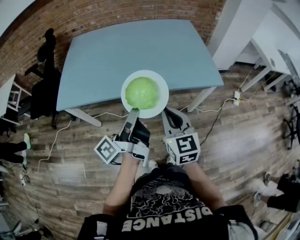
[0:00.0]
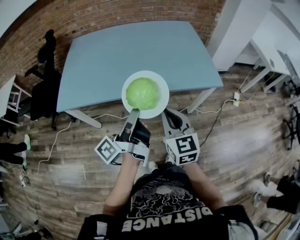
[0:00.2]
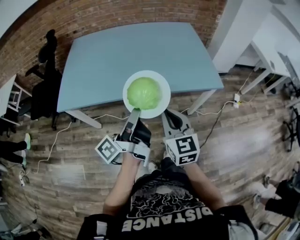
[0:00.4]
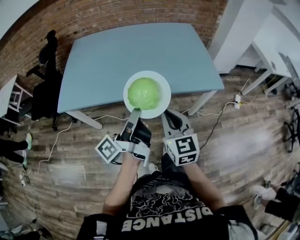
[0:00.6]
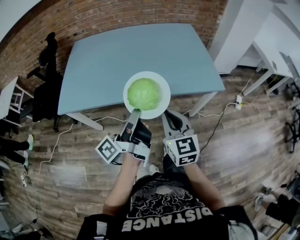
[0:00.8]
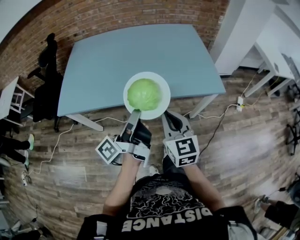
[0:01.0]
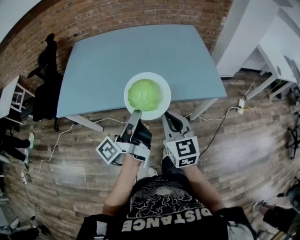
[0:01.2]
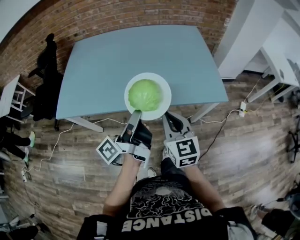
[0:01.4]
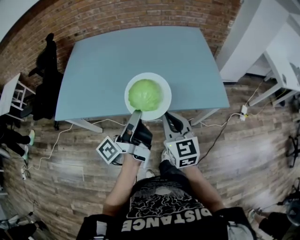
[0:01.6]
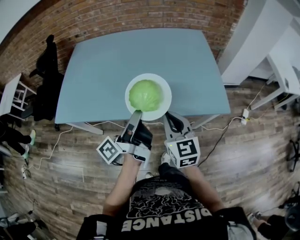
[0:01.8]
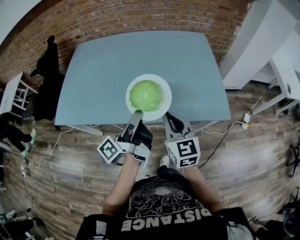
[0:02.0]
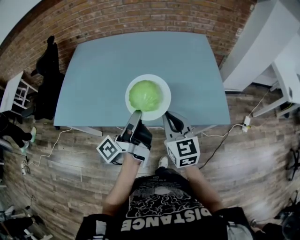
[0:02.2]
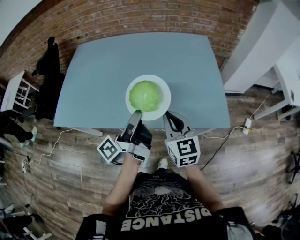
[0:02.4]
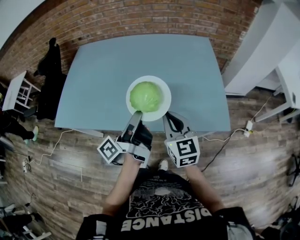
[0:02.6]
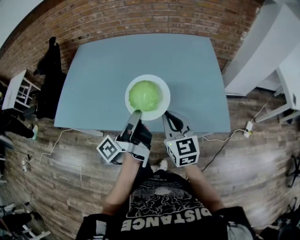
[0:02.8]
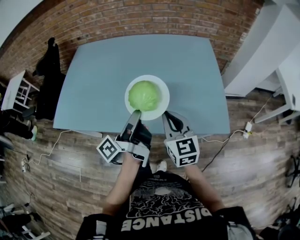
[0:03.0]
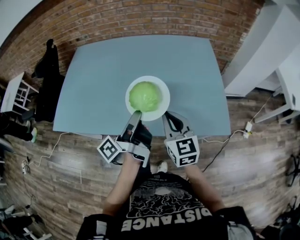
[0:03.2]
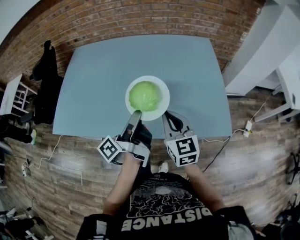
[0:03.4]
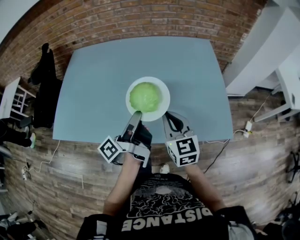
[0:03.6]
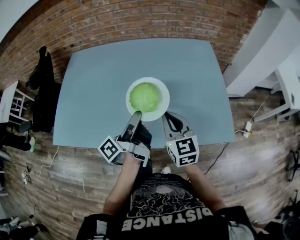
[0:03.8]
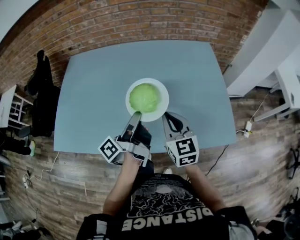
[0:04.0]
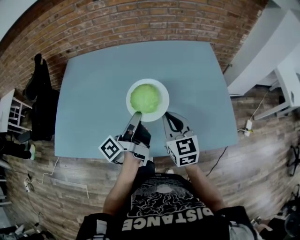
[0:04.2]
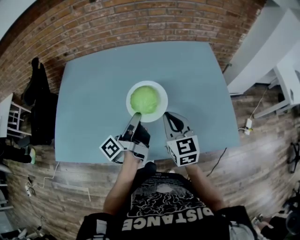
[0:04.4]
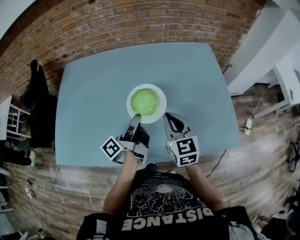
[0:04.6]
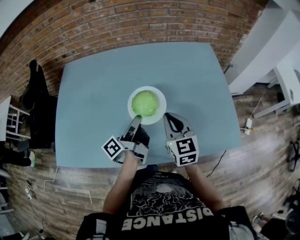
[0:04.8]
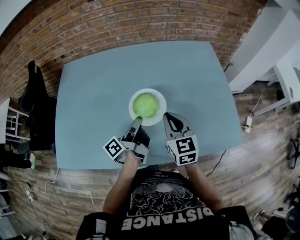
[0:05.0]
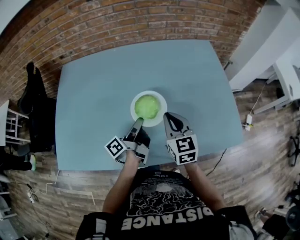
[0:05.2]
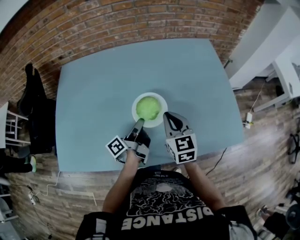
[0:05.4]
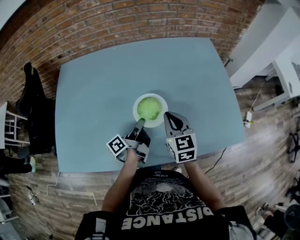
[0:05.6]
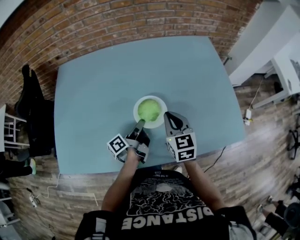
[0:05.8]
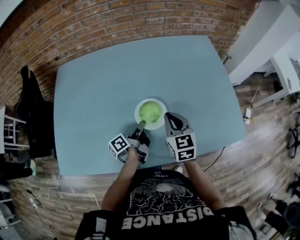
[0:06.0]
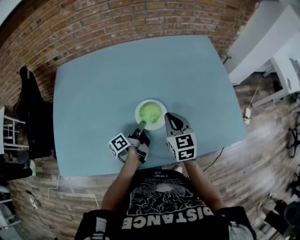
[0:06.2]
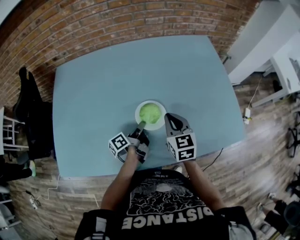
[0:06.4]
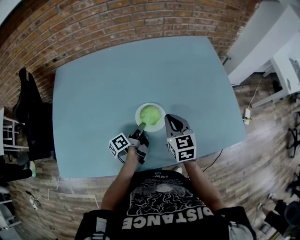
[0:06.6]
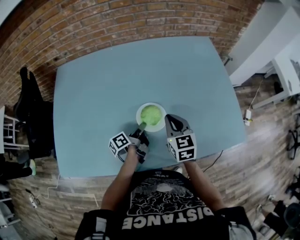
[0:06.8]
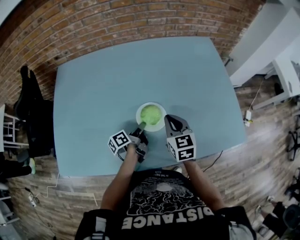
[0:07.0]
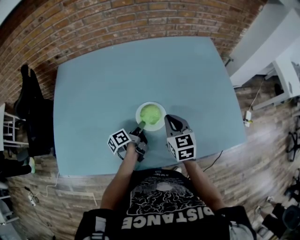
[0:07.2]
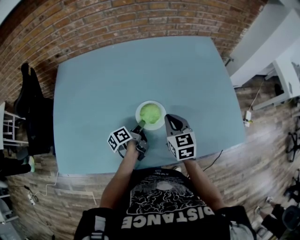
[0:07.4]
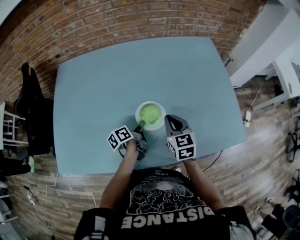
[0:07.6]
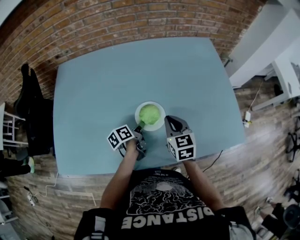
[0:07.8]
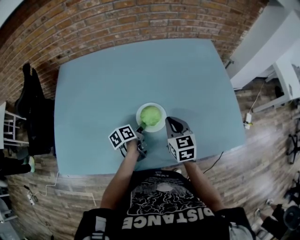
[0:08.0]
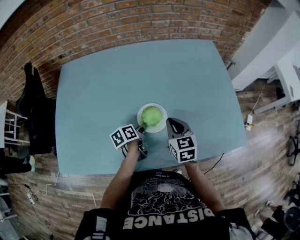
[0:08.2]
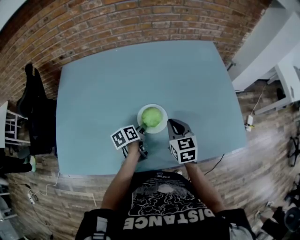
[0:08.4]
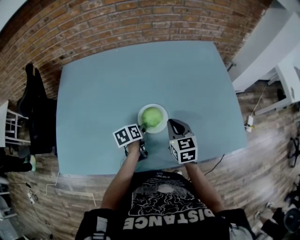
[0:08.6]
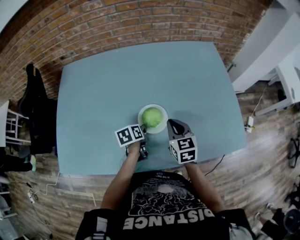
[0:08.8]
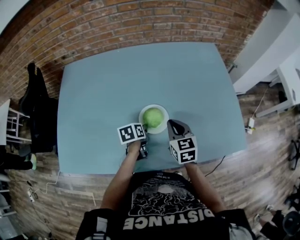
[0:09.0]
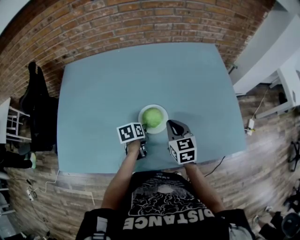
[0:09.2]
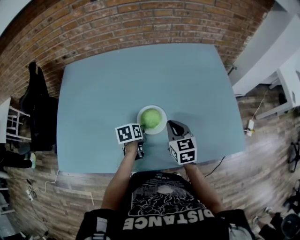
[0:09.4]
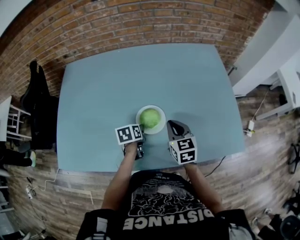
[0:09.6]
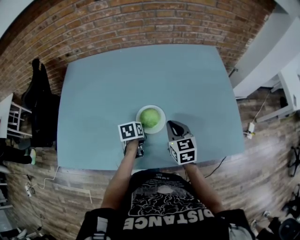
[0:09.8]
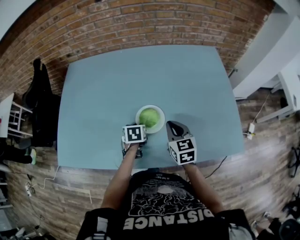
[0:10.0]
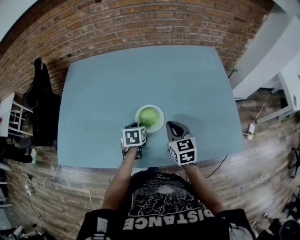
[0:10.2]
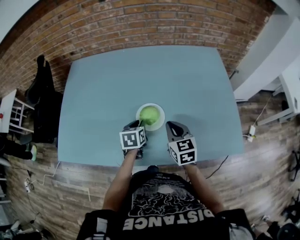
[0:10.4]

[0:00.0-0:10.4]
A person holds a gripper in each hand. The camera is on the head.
0:00.0 to 0:01.4: The right gripper ends up some 10 cm from where it was.
0:01.4 to 0:03.0: The right gripper shifts by roughly 15 cm.
0:03.0 to 0:04.4: The right gripper shifts by roughly 15 cm.
0:04.4 to 0:06.0: The right gripper moves downward, approximately 5 cm.

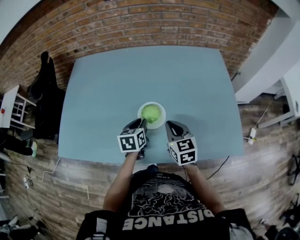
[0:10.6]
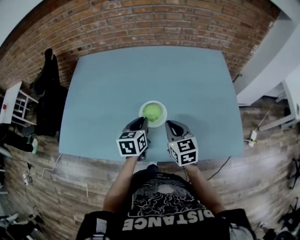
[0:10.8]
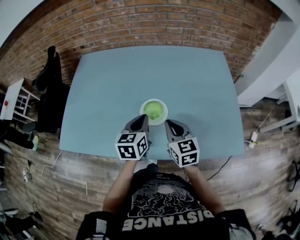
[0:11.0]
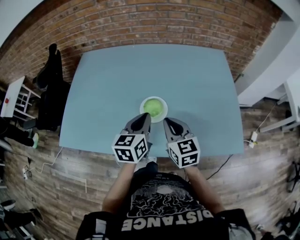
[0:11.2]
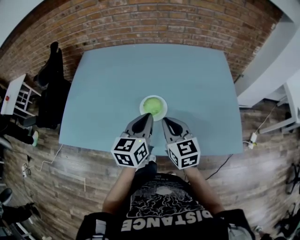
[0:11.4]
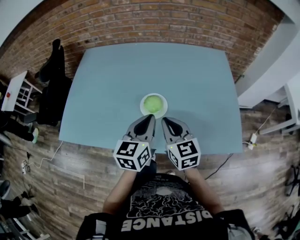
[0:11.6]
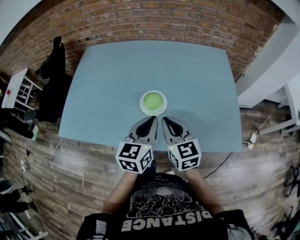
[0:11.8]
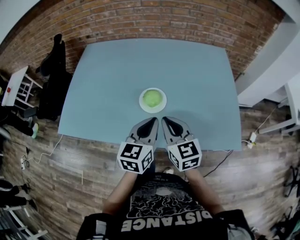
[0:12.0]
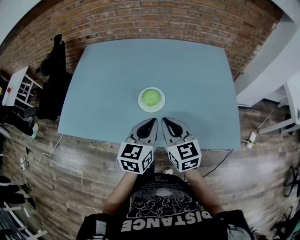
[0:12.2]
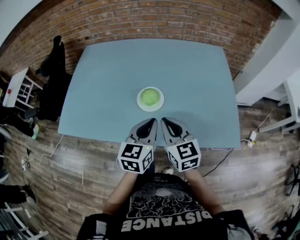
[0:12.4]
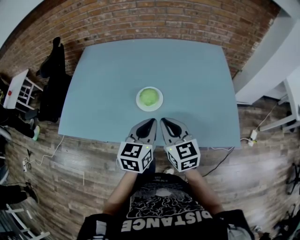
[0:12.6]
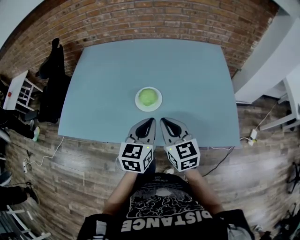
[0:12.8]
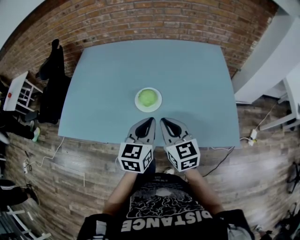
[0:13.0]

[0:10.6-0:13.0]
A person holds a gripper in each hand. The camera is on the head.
0:10.6 to 0:11.8: The right gripper shifts about 10 cm upward.

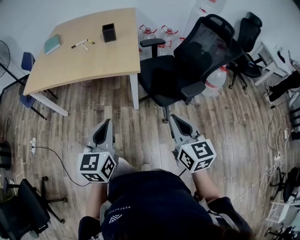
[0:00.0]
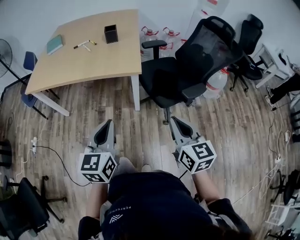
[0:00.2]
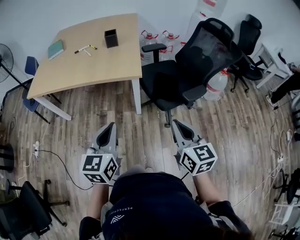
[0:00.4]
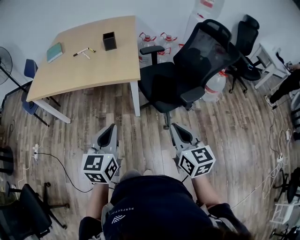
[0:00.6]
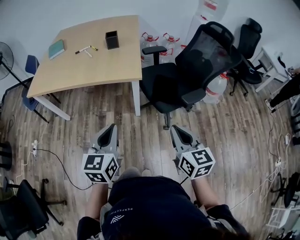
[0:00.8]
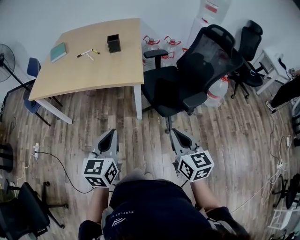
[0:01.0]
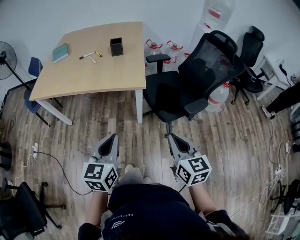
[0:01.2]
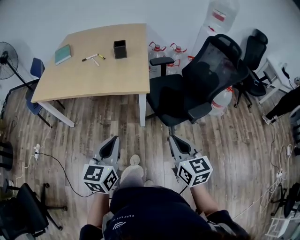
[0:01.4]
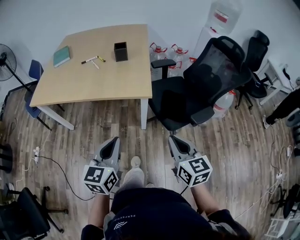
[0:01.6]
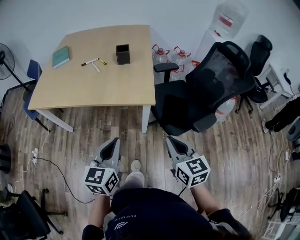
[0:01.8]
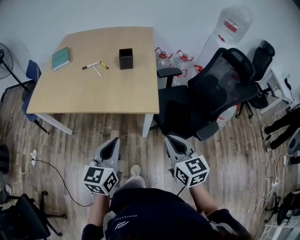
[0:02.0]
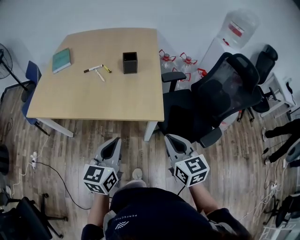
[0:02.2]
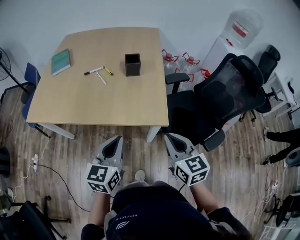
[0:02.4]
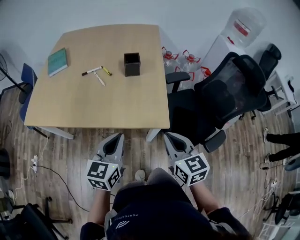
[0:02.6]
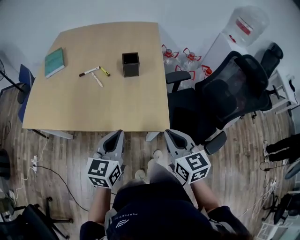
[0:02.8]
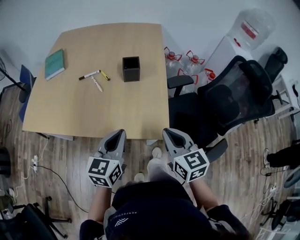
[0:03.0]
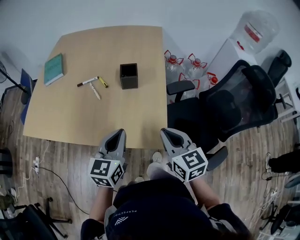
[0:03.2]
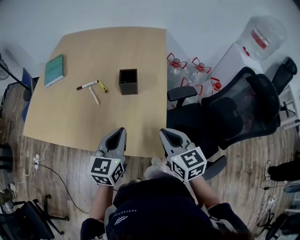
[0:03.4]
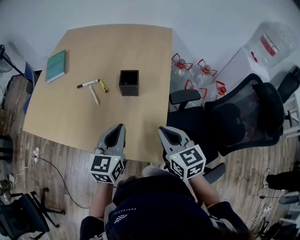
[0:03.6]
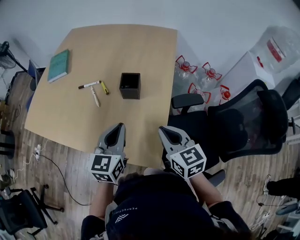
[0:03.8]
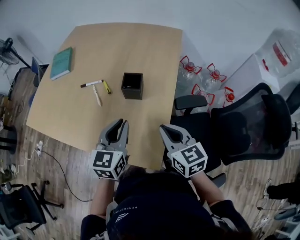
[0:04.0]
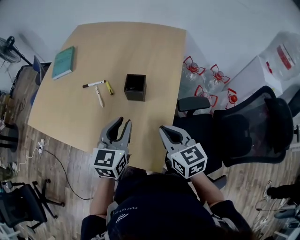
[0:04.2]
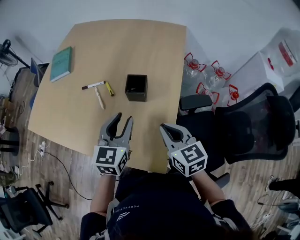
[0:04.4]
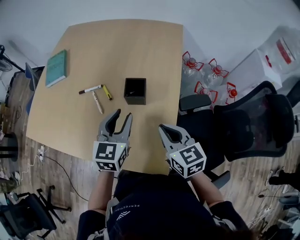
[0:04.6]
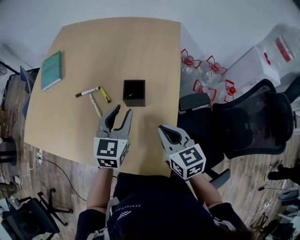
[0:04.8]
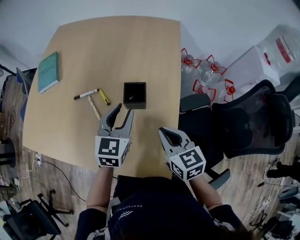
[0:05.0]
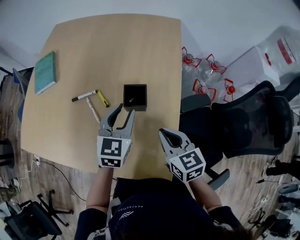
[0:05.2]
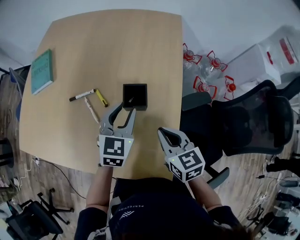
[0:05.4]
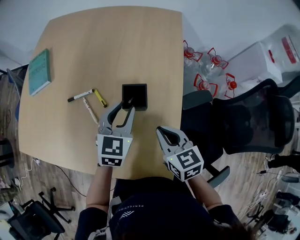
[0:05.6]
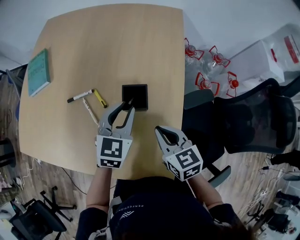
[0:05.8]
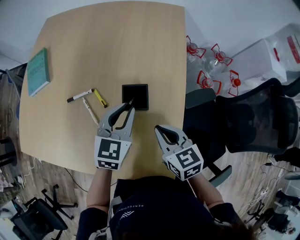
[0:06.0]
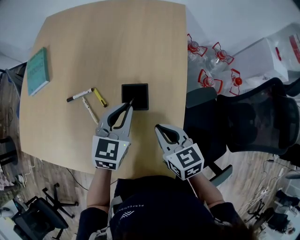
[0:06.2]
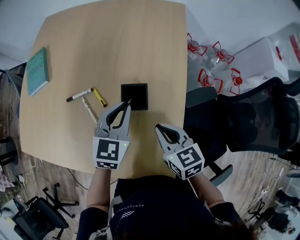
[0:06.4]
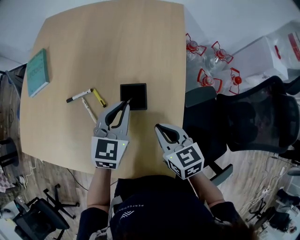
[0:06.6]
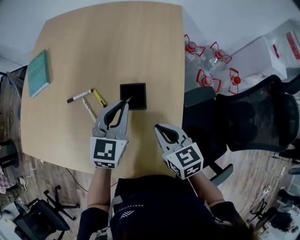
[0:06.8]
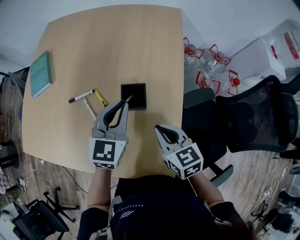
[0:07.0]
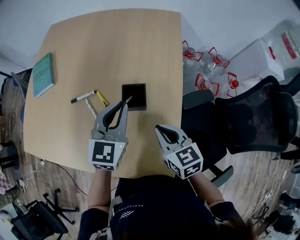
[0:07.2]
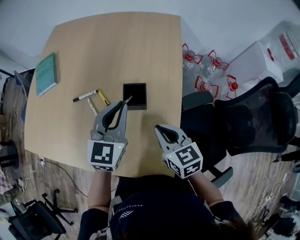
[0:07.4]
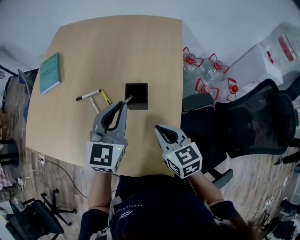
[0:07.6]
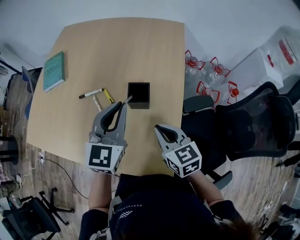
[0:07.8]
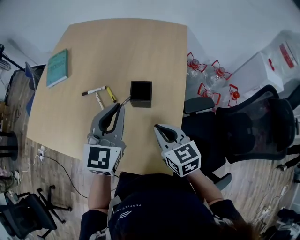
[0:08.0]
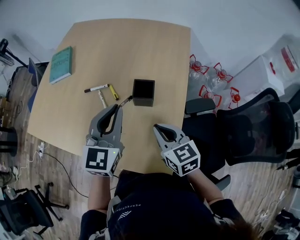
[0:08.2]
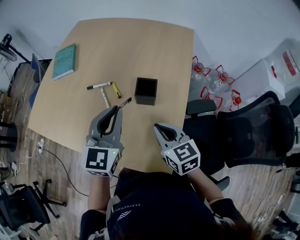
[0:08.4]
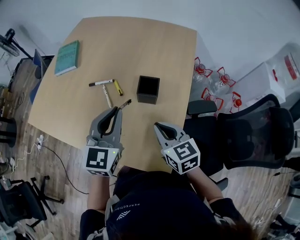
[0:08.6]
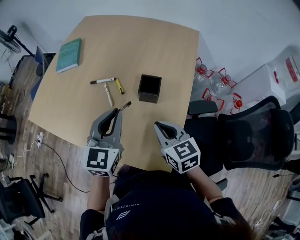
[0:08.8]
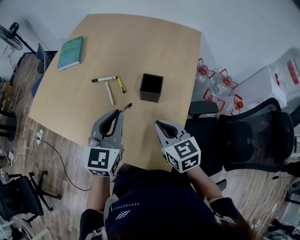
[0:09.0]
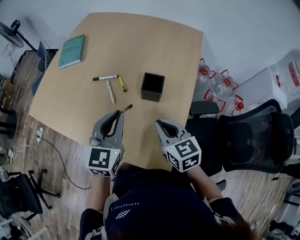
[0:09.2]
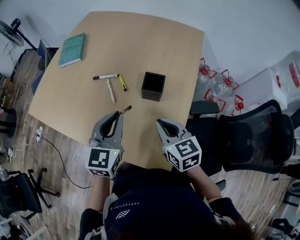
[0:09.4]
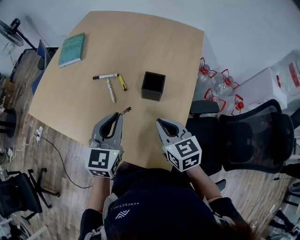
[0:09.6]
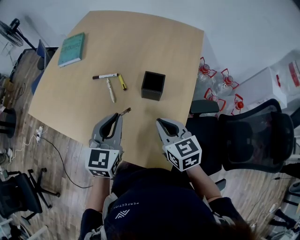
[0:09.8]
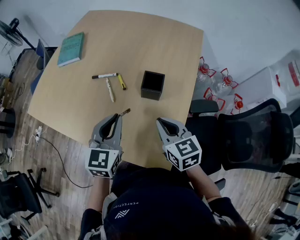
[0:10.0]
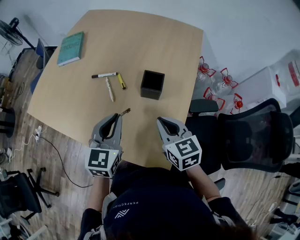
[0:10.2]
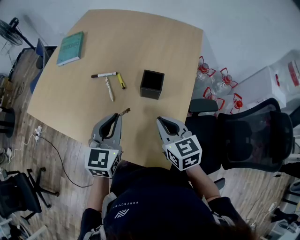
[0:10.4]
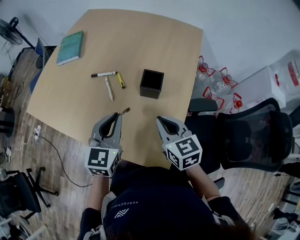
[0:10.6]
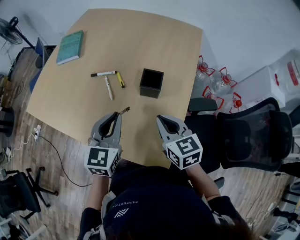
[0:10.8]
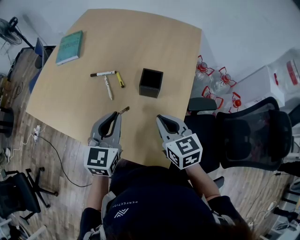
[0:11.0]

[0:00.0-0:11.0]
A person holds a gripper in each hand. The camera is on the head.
0:00.0 to 0:01.6: Both grippers move forward, about 5 cm.
0:01.6 to 0:03.2: Both grippers travel together forward, approximately 35 cm.
0:03.2 to 0:04.8: Both grippers move forward, some 20 cm. The left gripper opens its fingers.
0:04.8 to 0:06.2: The grippers both shift forward by about 5 cm. The left gripper closes.
0:06.2 to 0:07.8: The right gripper ends up roughly 5 cm from where it was. Meanwhile the left gripper travels upward by about 10 cm.
0:07.8 to 0:09.4: The left gripper shifts roughly 10 cm to the left and backward.
0:09.4 to 0:11.0: The grippers move only a little.
